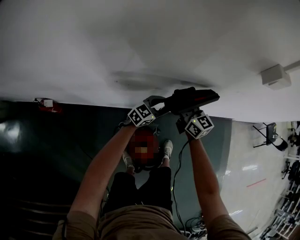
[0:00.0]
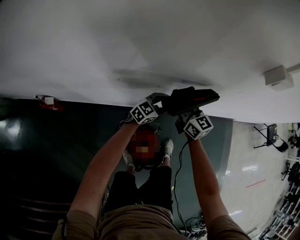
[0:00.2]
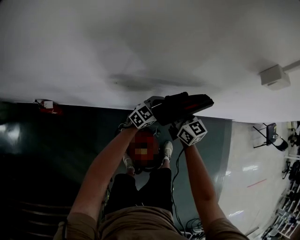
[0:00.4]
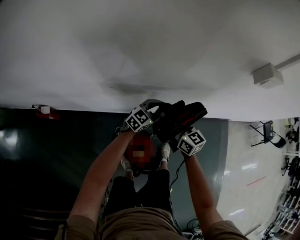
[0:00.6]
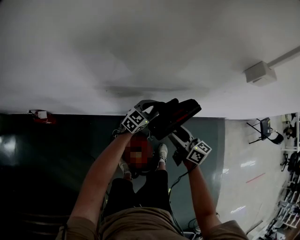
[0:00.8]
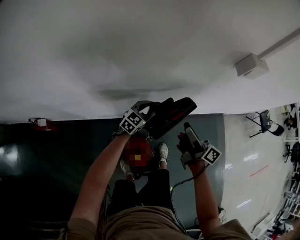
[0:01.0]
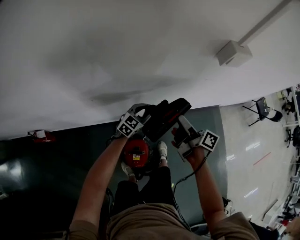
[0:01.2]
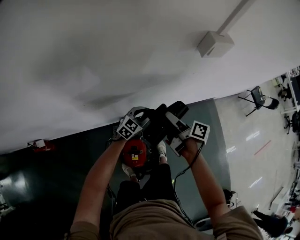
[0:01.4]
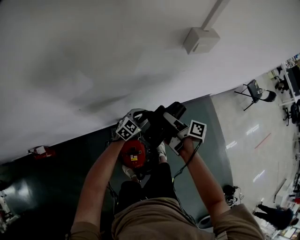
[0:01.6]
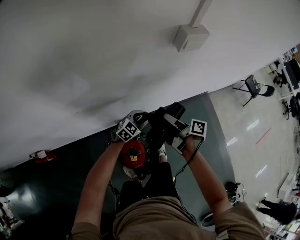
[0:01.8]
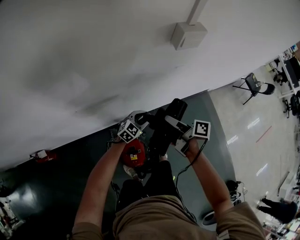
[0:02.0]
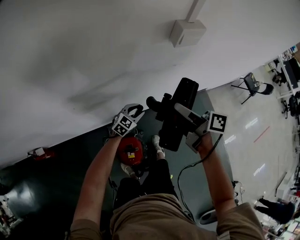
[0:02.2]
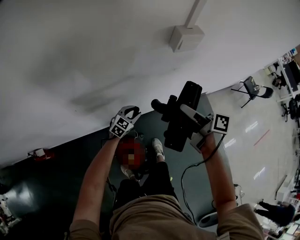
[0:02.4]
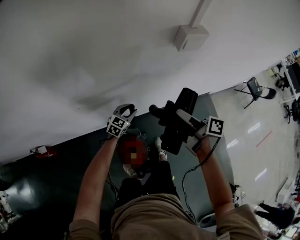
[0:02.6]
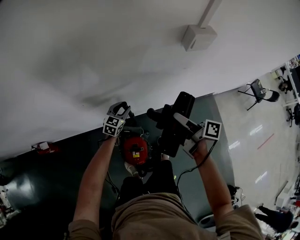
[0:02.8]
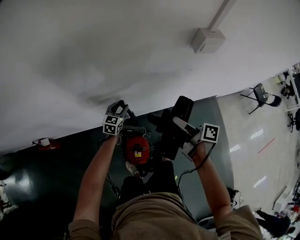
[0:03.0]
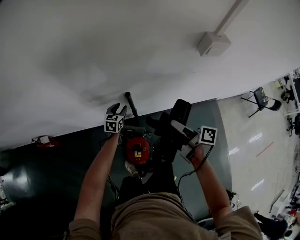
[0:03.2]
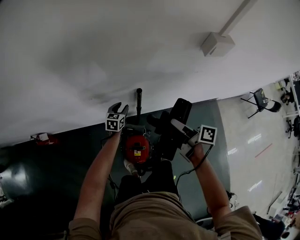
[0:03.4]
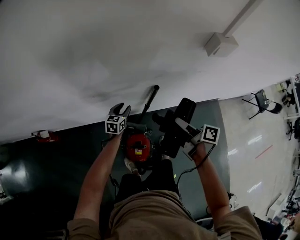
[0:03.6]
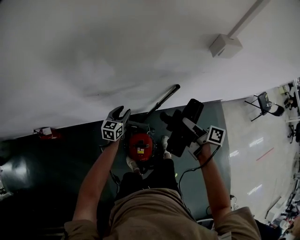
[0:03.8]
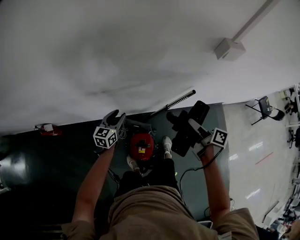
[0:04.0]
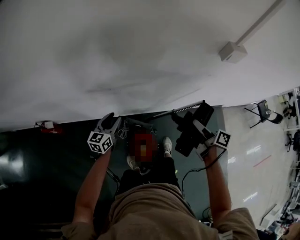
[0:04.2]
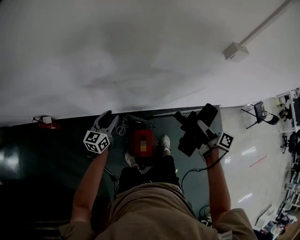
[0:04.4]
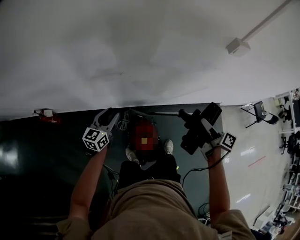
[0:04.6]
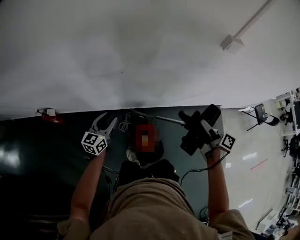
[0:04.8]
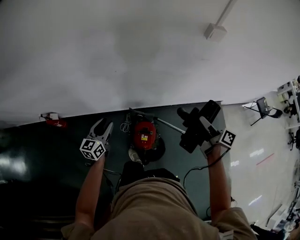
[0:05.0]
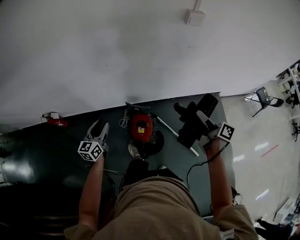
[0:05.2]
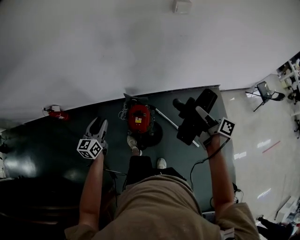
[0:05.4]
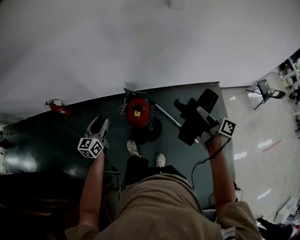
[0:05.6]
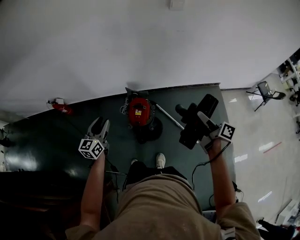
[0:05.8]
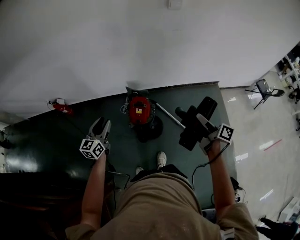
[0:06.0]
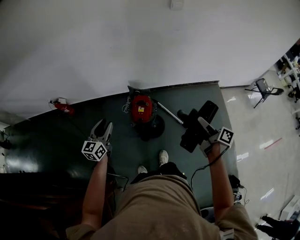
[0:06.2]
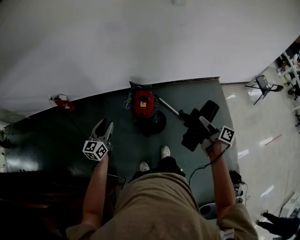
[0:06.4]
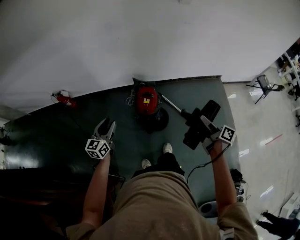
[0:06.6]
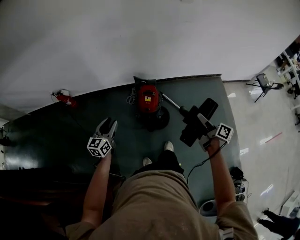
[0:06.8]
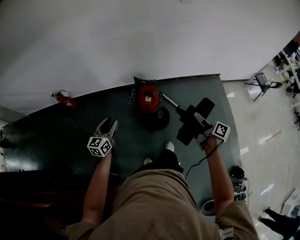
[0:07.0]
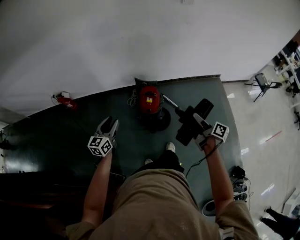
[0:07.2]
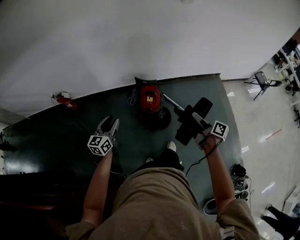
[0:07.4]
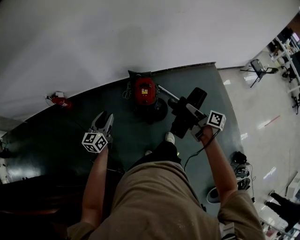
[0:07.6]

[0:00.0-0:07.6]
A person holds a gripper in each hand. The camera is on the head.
0:00.0 to 0:01.6: The left gripper moves to the right, about 10 cm. Meanwhile the right gripper heads to the right and backward, covering about 20 cm, and rolls clockwise, seen from behind, by about 70 degrees.
0:01.6 to 0:03.0: The left gripper travels to the left by roughly 15 cm, and rotates approximately 30 degrees; the right gripper heads upward, covering approximately 5 cm.
0:03.0 to 0:04.6: The right gripper goes some 5 cm backward; the left gripper is displaced to the left, backward and upward by approximately 30 cm, and rotates some 20 degrees.
0:04.6 to 0:06.0: The two grippers travel together, backward, roughly 50 cm.
0:06.0 to 0:07.6: The right gripper shifts approximately 20 cm to the left, backward and downward, while the left gripper travels to the left and backward by some 15 cm.

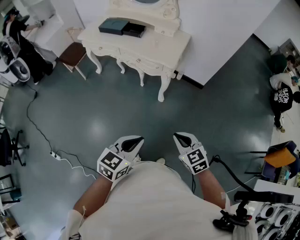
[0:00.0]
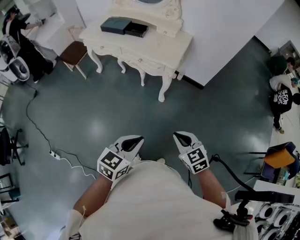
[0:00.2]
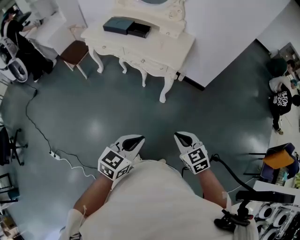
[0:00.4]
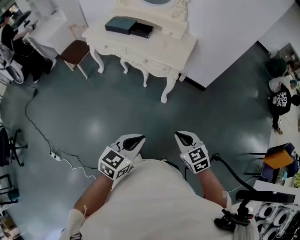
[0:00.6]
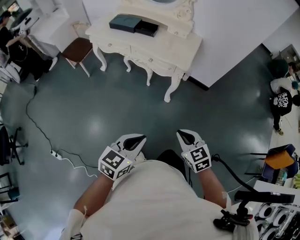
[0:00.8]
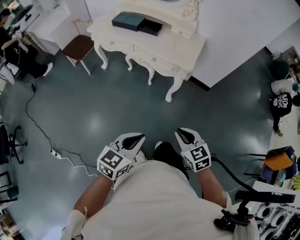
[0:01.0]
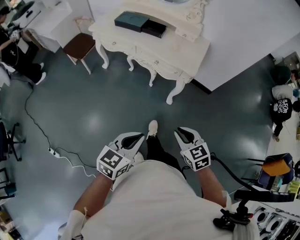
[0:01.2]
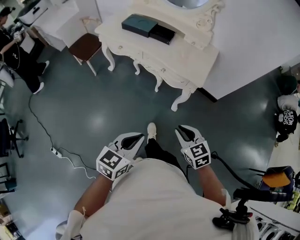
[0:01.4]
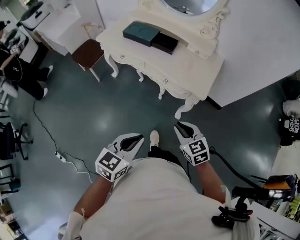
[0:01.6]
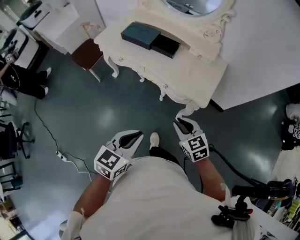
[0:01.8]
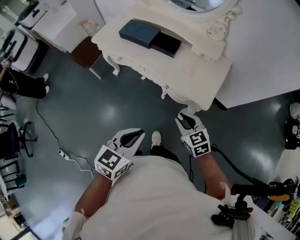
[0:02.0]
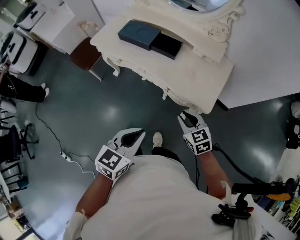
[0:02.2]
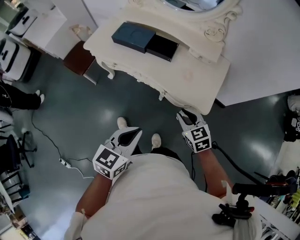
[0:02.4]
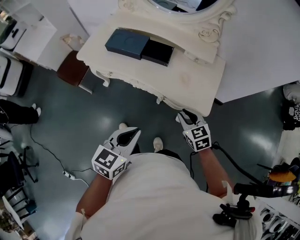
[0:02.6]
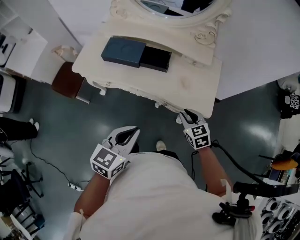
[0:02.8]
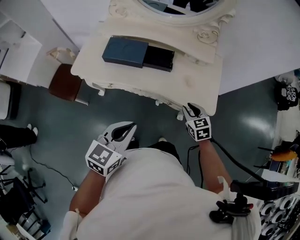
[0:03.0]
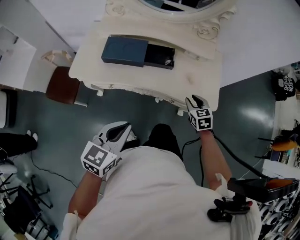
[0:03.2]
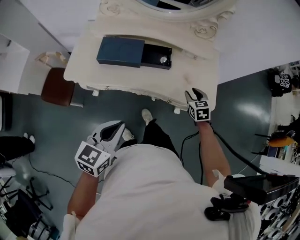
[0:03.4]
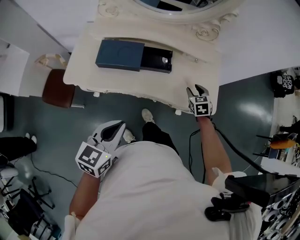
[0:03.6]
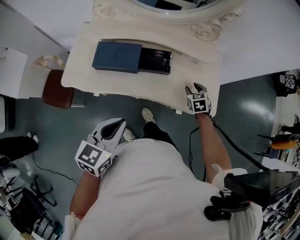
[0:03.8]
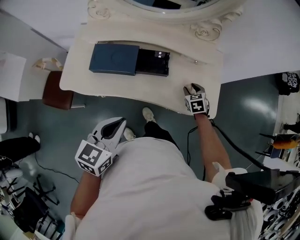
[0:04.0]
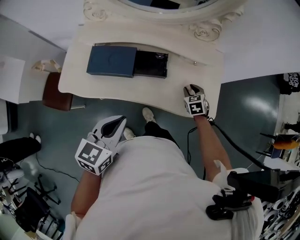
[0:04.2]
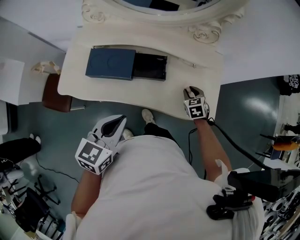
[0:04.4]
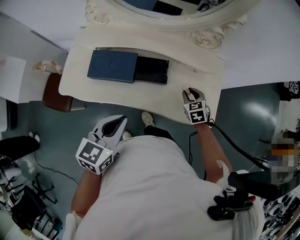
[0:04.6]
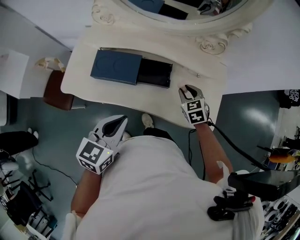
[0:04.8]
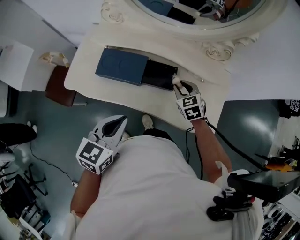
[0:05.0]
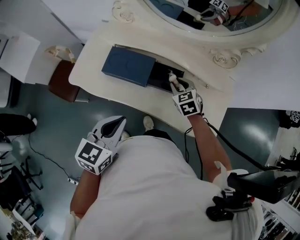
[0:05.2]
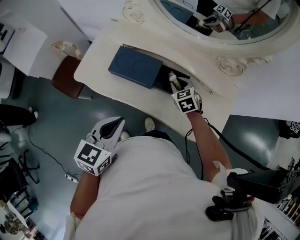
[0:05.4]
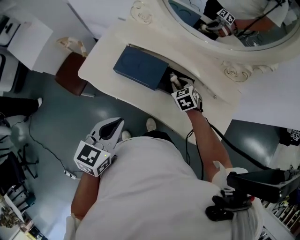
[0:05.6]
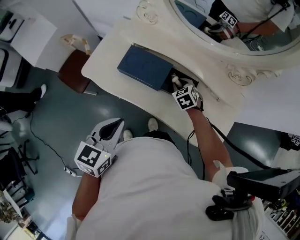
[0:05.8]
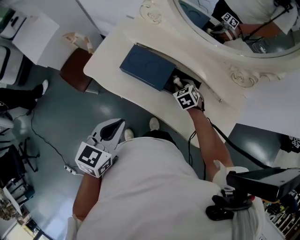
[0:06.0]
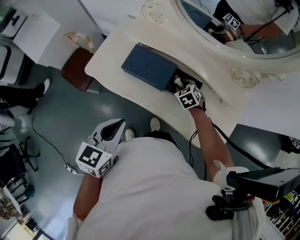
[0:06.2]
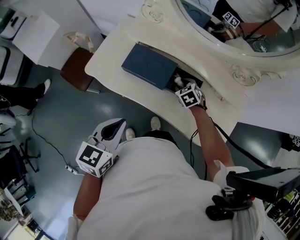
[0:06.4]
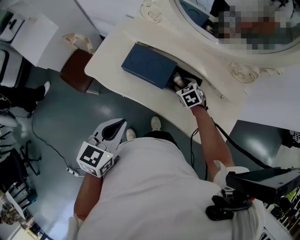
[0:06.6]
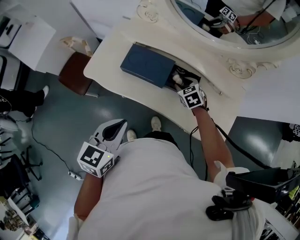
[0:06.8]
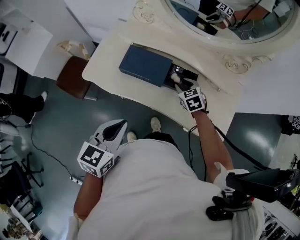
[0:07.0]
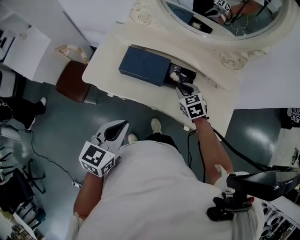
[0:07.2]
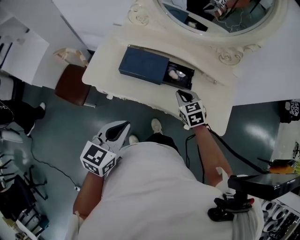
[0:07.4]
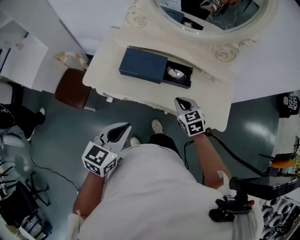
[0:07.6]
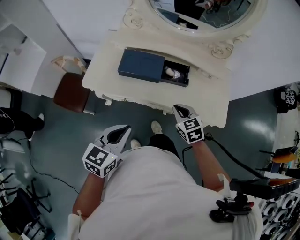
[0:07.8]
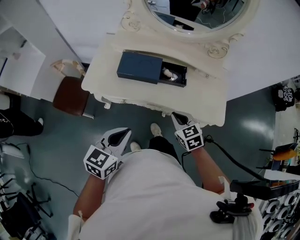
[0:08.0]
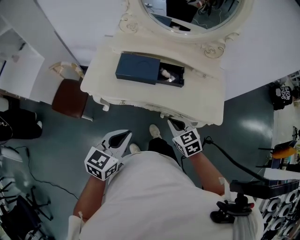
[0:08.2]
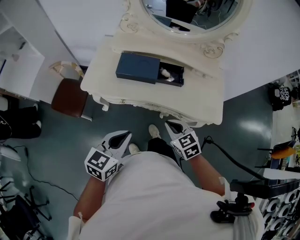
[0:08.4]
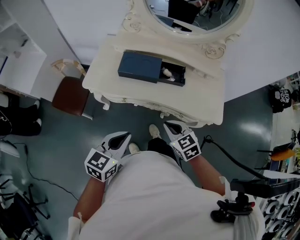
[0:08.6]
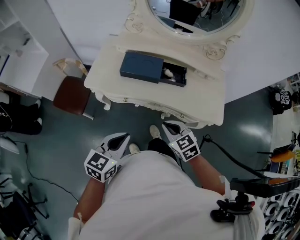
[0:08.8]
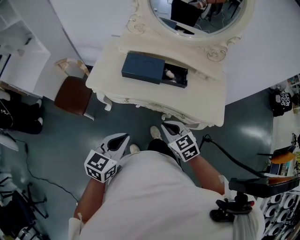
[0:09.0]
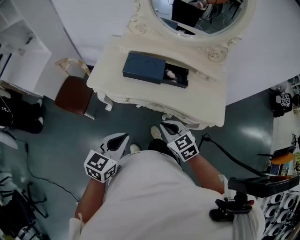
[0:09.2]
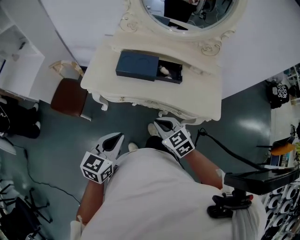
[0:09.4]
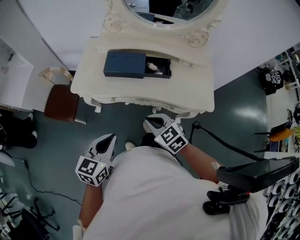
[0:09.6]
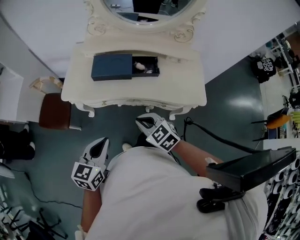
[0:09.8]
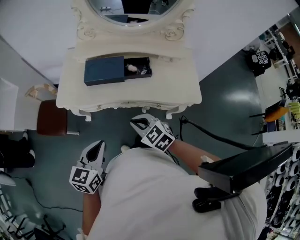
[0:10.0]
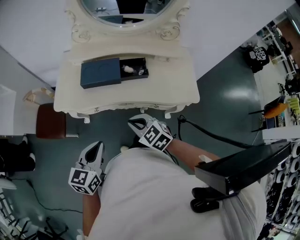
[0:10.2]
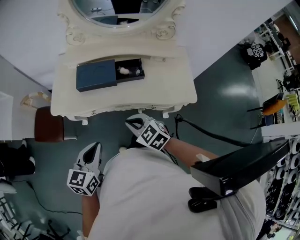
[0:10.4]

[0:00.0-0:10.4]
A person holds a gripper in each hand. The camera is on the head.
0:00.0 to 0:01.4: The left gripper shifts about 20 cm to the left and forward, while the right gripper heads forward and to the left, covering about 25 cm.
0:01.4 to 0:03.0: Both grippers are carried forward, roughly 40 cm. The right gripper rotates roughly 30 degrees.
0:03.0 to 0:04.4: The right gripper heads forward and downward, covering approximately 20 cm. Meanwhile the left gripper is displaced forward by about 15 cm.
0:04.4 to 0:06.0: The right gripper travels upward and back again, about 10 cm each way, and changes its angle by about 30 degrees. The left gripper ends up roughly 10 cm from where it was, and swivels some 20 degrees.
0:06.0 to 0:07.4: The right gripper travels backward and upward by approximately 15 cm, rotates about 20 degrees, and closes its fingers. Meanwhile the left gripper is displaced backward by some 5 cm.
0:07.4 to 0:09.0: The right gripper is displaced backward by some 25 cm. The left gripper shifts approximately 10 cm backward.
0:09.0 to 0:10.4: The grippers move only a little.

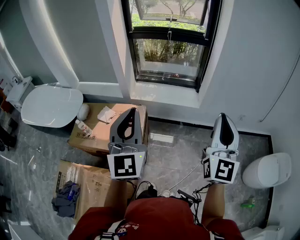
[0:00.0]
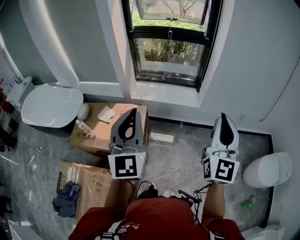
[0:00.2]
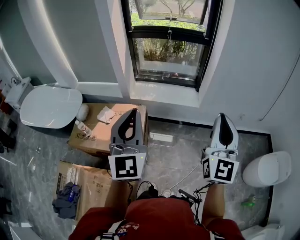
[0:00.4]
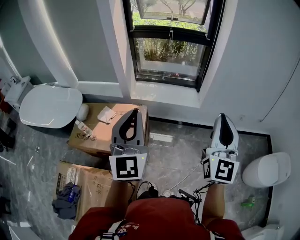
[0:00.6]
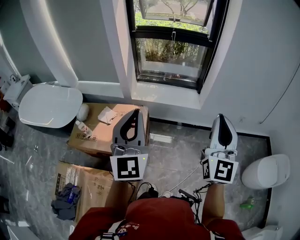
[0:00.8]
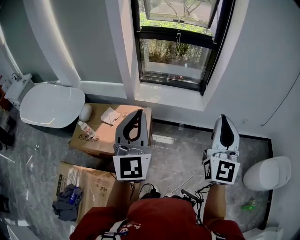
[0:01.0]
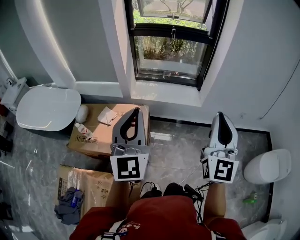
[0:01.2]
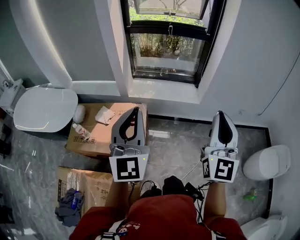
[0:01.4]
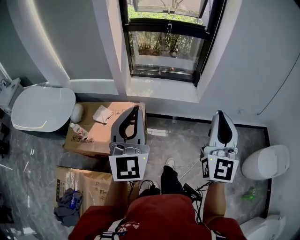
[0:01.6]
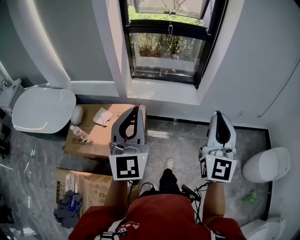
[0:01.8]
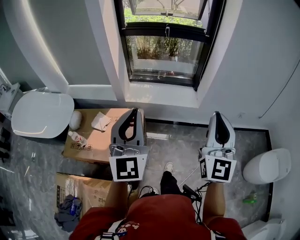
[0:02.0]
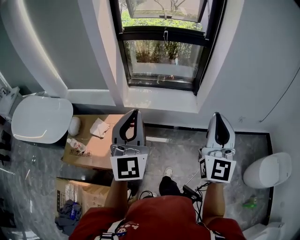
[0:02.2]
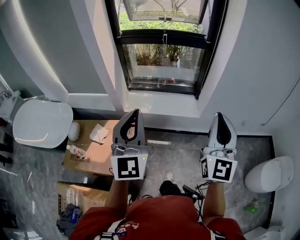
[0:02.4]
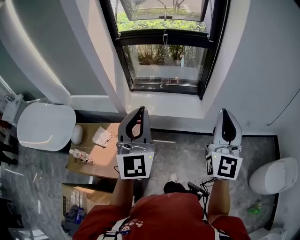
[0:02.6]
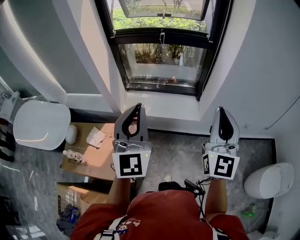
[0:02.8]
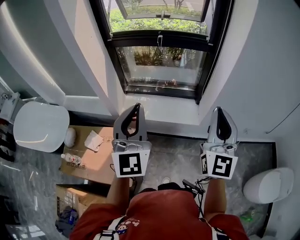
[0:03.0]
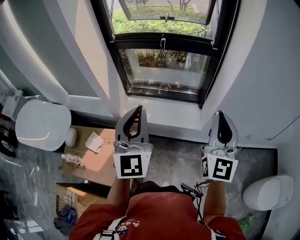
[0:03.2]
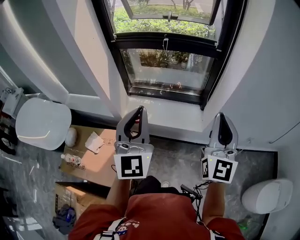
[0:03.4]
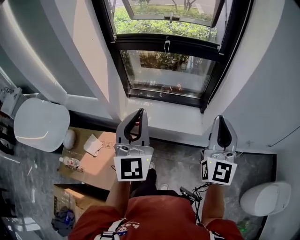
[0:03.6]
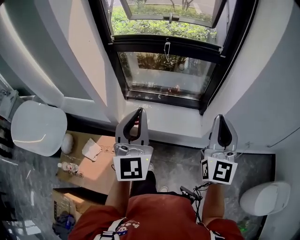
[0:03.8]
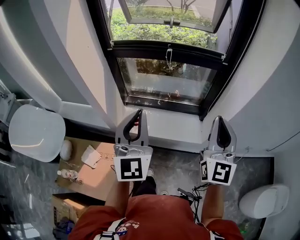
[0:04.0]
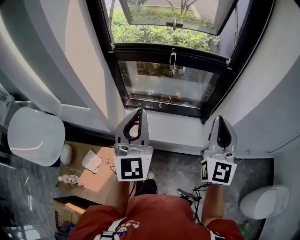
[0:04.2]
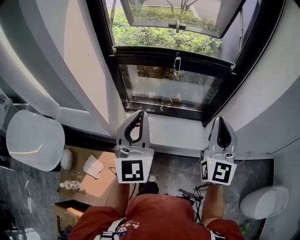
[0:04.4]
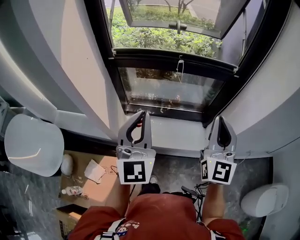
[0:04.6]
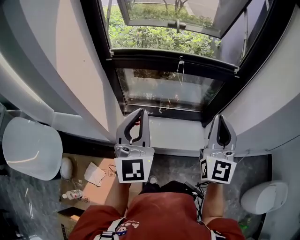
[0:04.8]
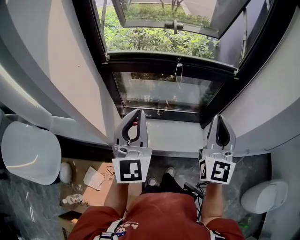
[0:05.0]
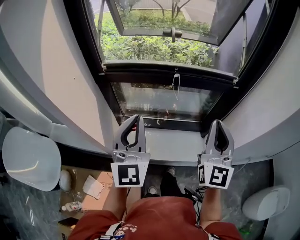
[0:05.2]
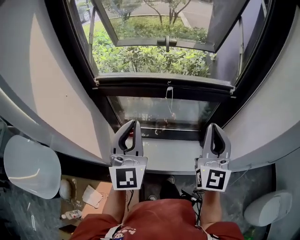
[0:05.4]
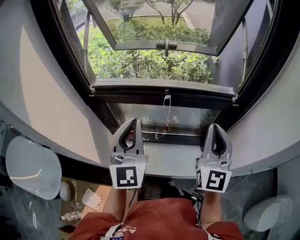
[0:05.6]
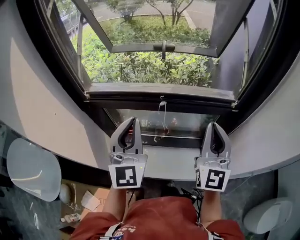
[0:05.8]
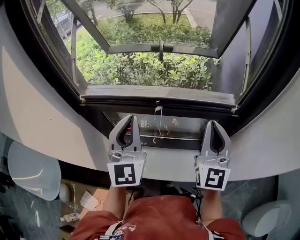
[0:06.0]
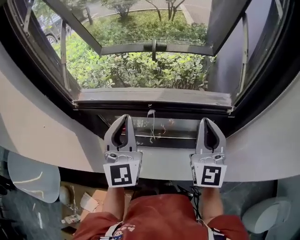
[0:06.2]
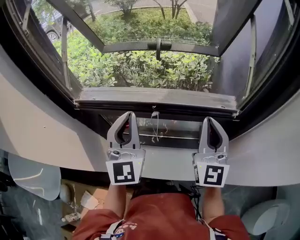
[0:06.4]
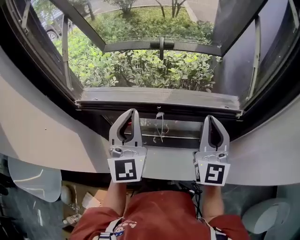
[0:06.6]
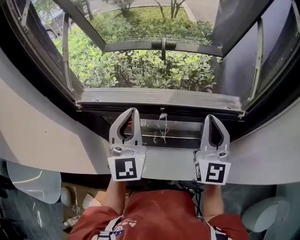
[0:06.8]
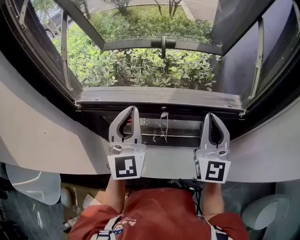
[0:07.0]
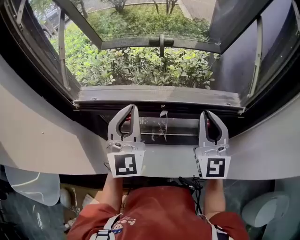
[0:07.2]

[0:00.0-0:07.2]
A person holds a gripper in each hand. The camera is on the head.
0:00.0 to 0:01.4: Both grippers travel together to the left, roughly 5 cm.
0:01.4 to 0:02.8: Both grippers travel together forward, some 25 cm.
0:02.8 to 0:04.4: Both grippers move forward, roughly 25 cm.
0:04.4 to 0:05.8: Both grippers travel together forward, about 20 cm.
0:05.8 to 0:07.2: Both grippers move forward, about 10 cm.
